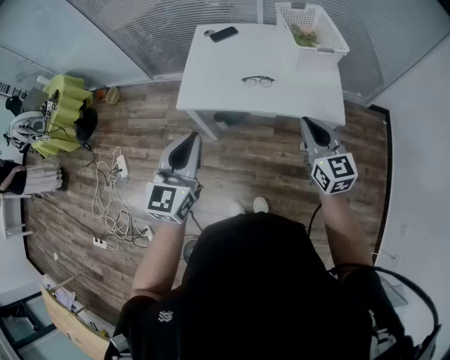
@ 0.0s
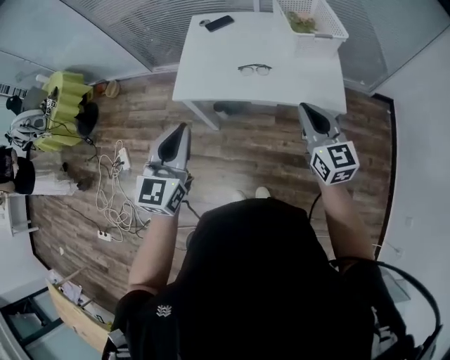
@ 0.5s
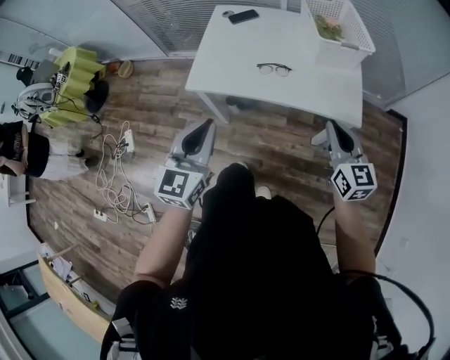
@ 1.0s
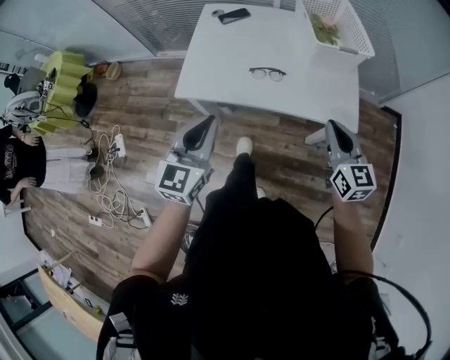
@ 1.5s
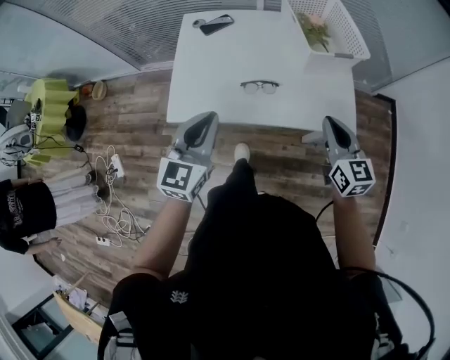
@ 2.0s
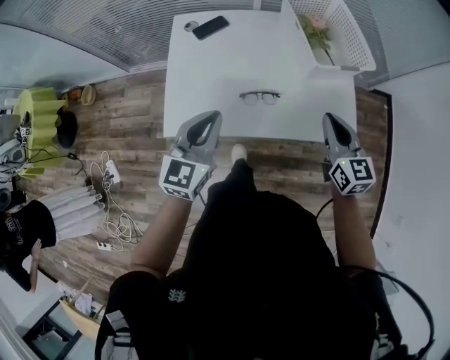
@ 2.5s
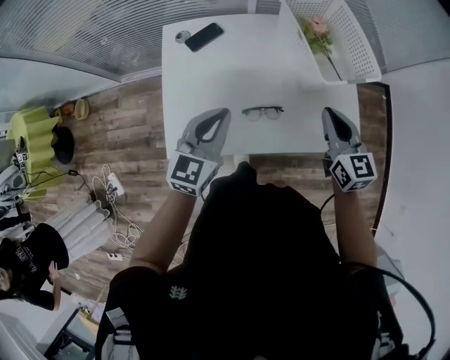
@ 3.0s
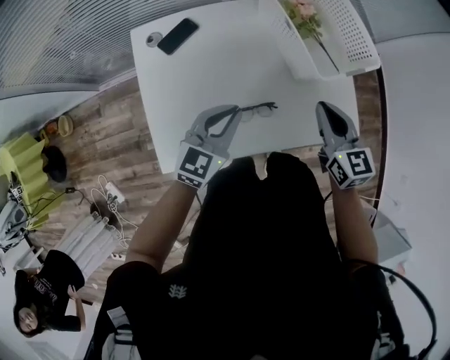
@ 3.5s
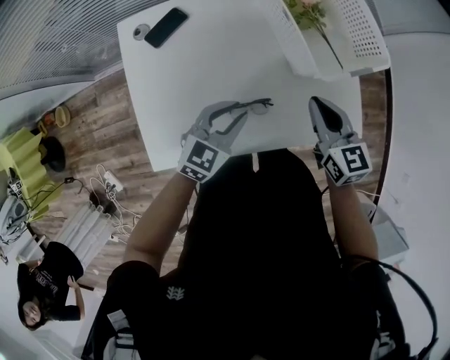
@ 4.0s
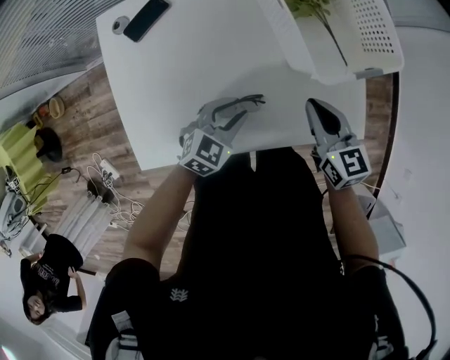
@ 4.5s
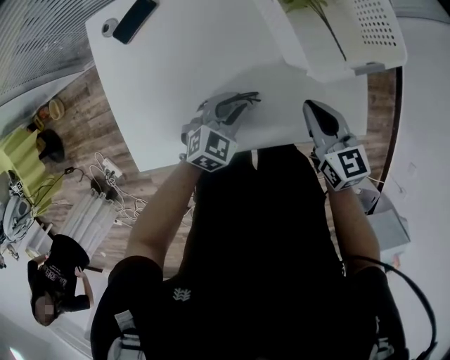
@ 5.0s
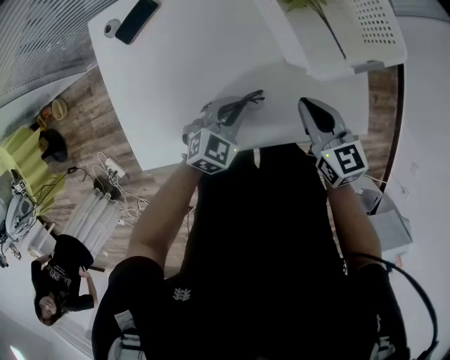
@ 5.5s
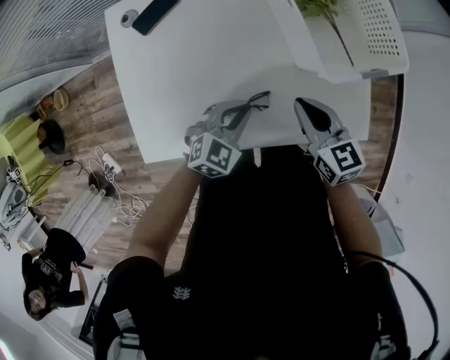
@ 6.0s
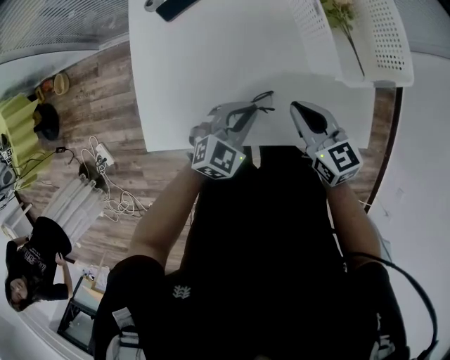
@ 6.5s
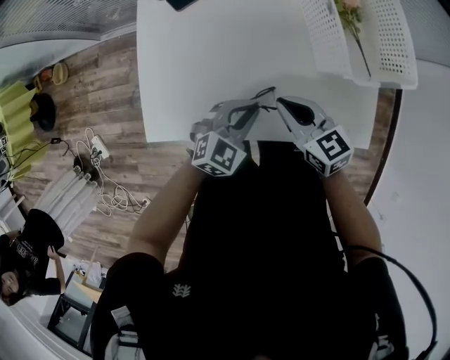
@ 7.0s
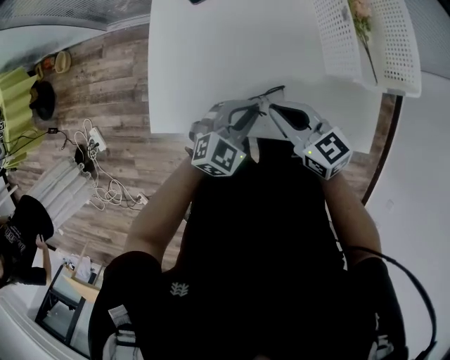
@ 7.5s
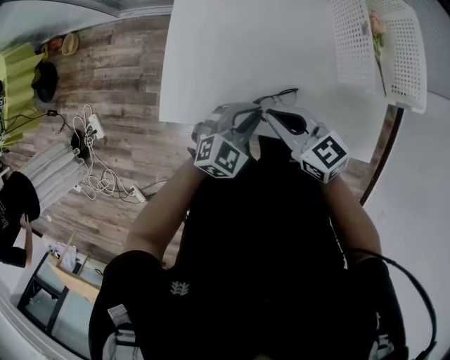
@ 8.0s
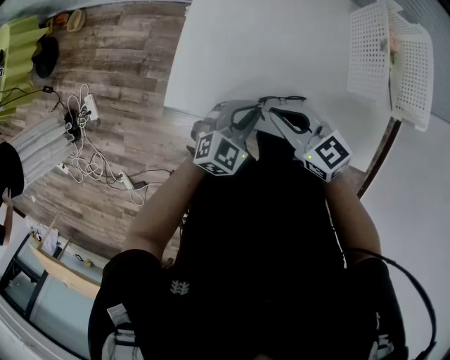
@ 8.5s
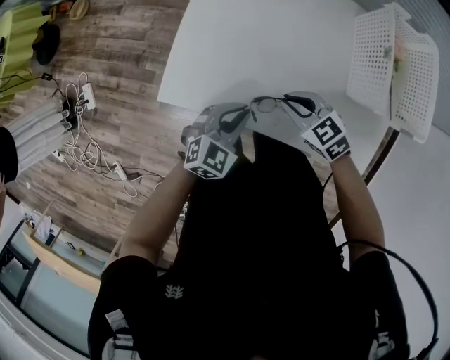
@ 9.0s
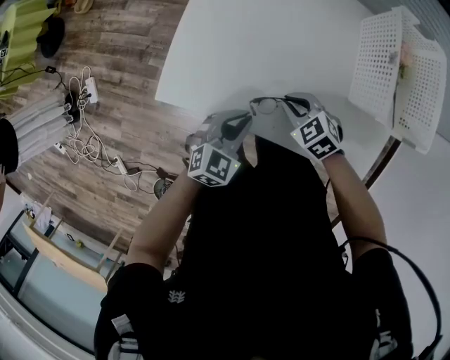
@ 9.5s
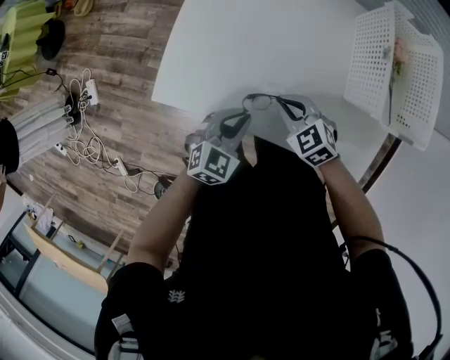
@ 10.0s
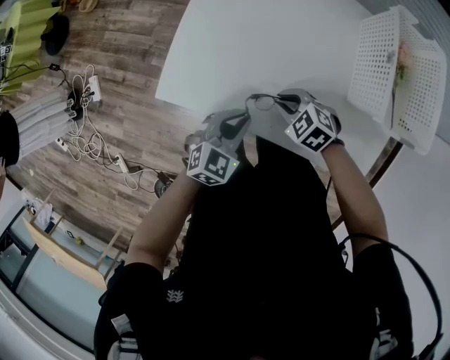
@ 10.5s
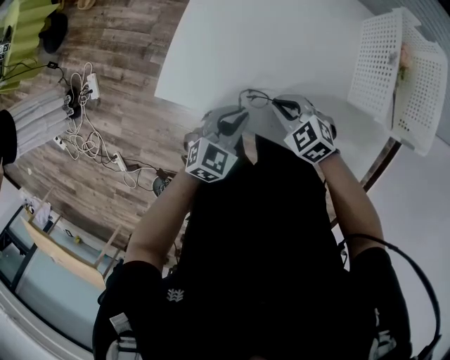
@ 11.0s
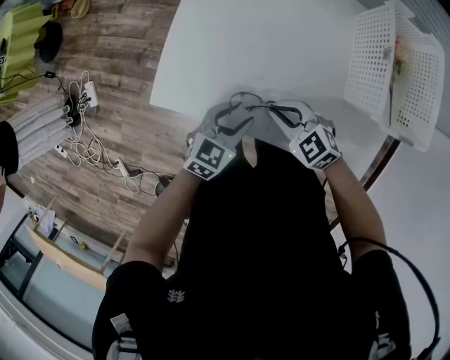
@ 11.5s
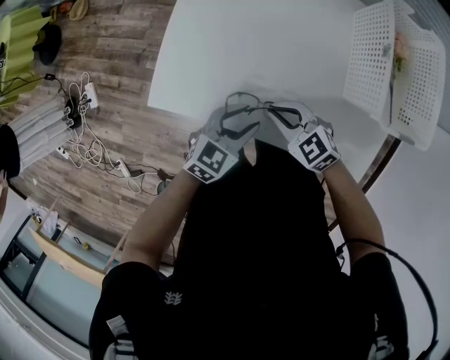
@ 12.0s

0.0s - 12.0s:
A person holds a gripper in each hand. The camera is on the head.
0.0s - 2.0s: Both grippers travel together forward, about 20 cm.
2.0s - 4.0s: Both grippers move forward and downward, roughly 25 cm. The left gripper changes its angle by some 40 degrees, and opens up.
4.0s - 6.0s: The two grippers go some 5 cm downward. The left gripper closes its fingers.
6.0s - 8.0s: The left gripper ends up about 10 cm from where it was. The right gripper changes place by roughly 20 cm, and changes its angle by approximately 30 degrees.
8.0s - 10.0s: The right gripper travels downward by roughly 10 cm, and swivels about 40 degrees. Meanwhile the left gripper rotates some 20 degrees.
10.0s - 12.0s: The left gripper opens up.

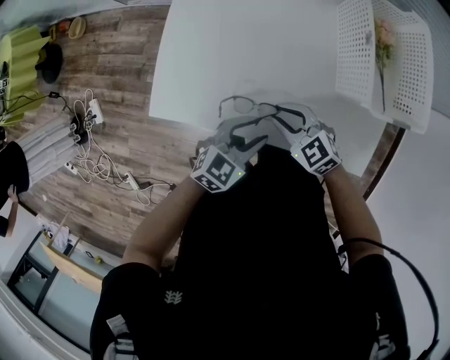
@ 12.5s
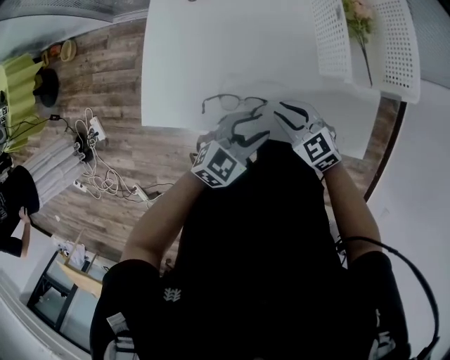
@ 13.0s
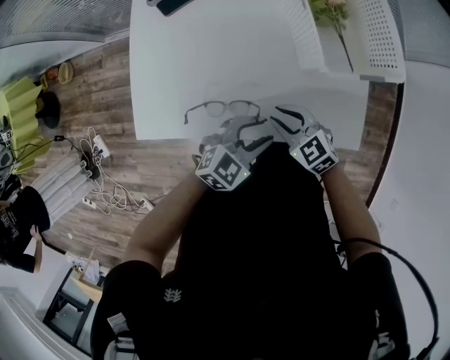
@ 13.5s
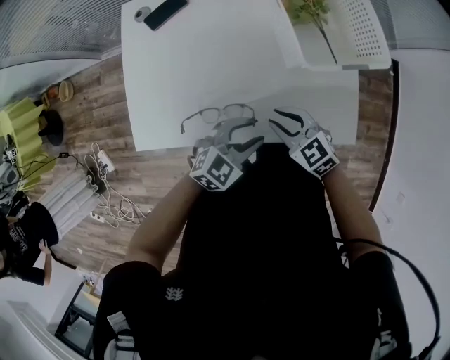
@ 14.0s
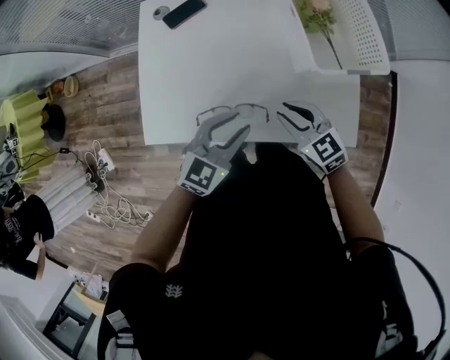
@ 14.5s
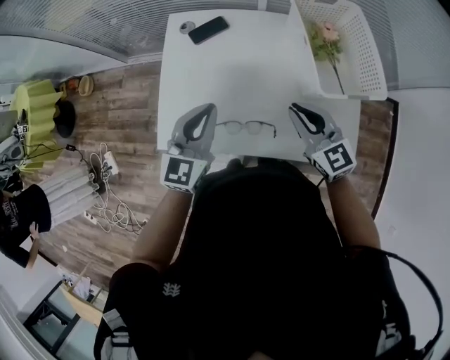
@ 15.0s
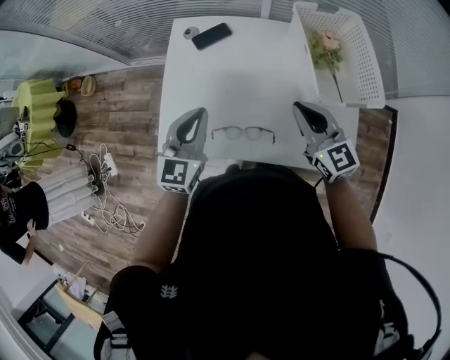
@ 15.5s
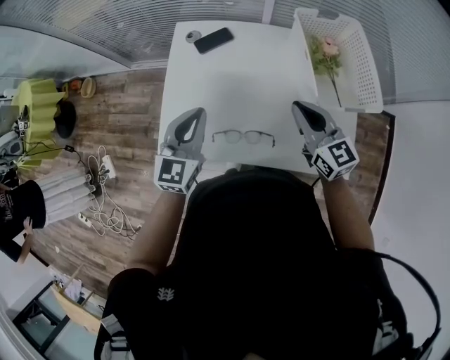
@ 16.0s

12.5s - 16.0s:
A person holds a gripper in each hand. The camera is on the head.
12.5s - 14.5s: The right gripper is displaced to the right and upward by roughly 10 cm, and rotates roughly 20 degrees. Meanwhile the left gripper travels upward by about 10 cm, and goes to the right and returns, roughly 10 cm each way.
14.5s - 16.0s: The right gripper heads upward and forward, covering about 15 cm, swivels roughly 20 degrees, and closes its fingers. Meanwhile the left gripper is displaced to the left, upward and forward by approximately 15 cm, rotates approximately 30 degrees, and closes its fingers.

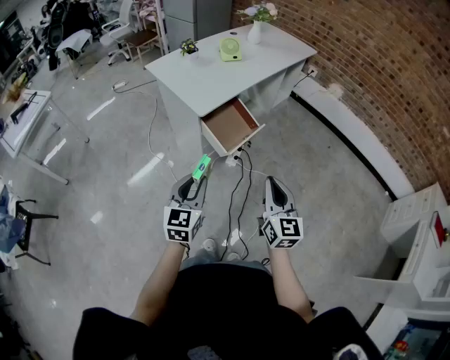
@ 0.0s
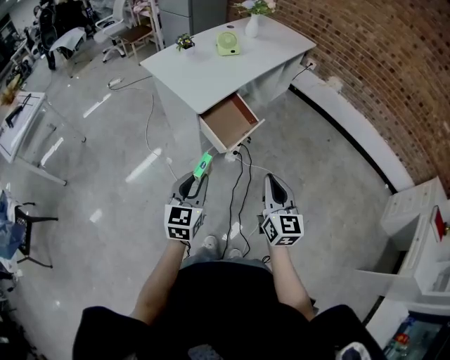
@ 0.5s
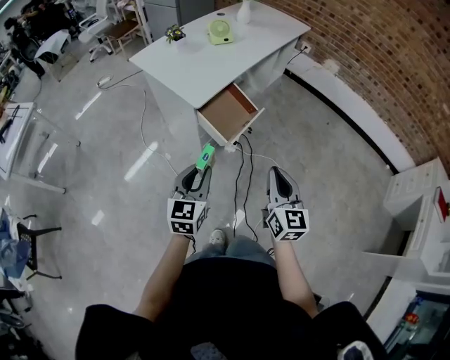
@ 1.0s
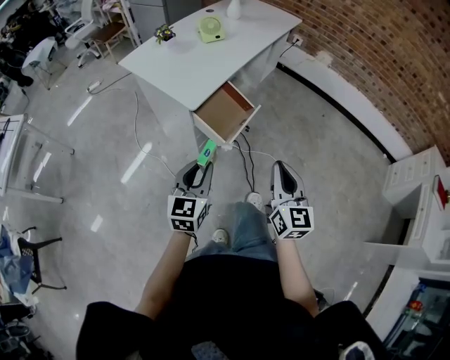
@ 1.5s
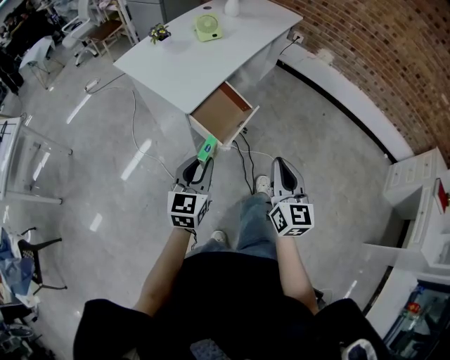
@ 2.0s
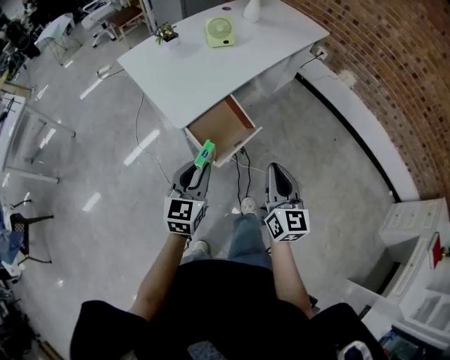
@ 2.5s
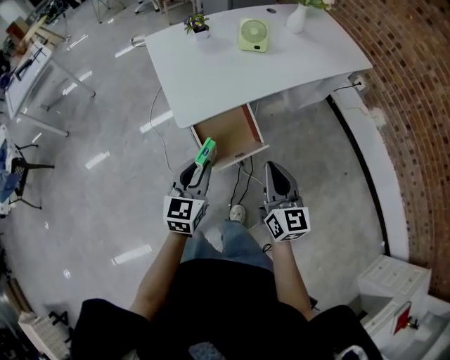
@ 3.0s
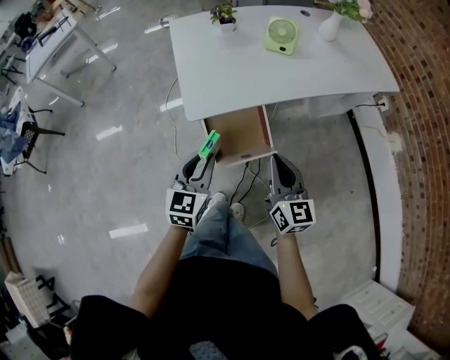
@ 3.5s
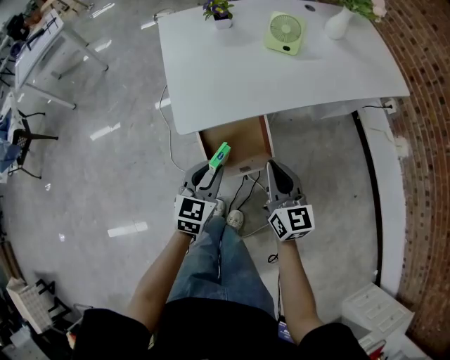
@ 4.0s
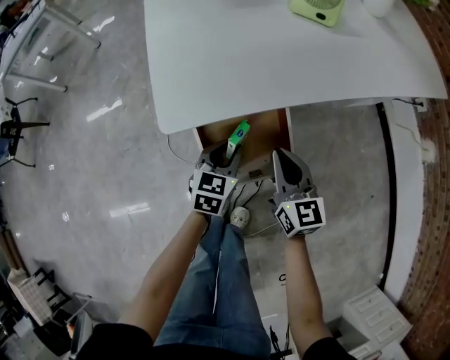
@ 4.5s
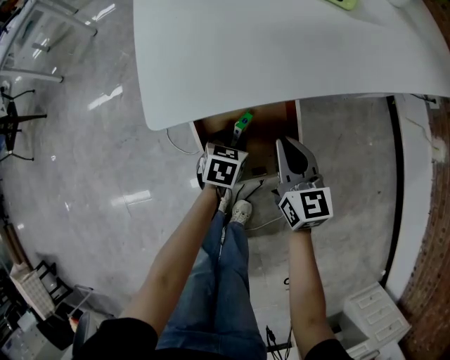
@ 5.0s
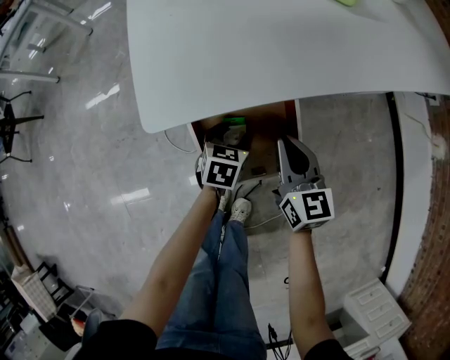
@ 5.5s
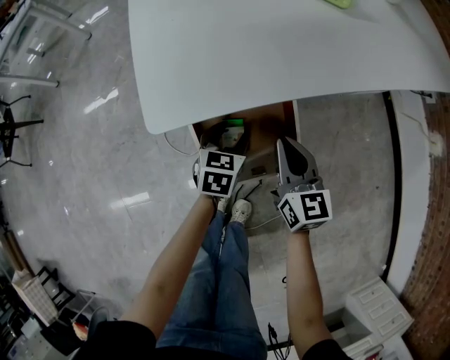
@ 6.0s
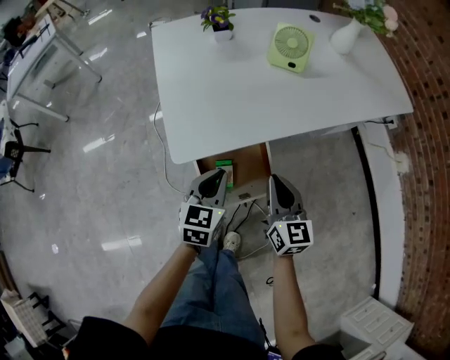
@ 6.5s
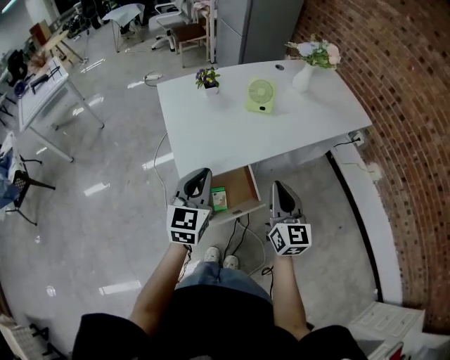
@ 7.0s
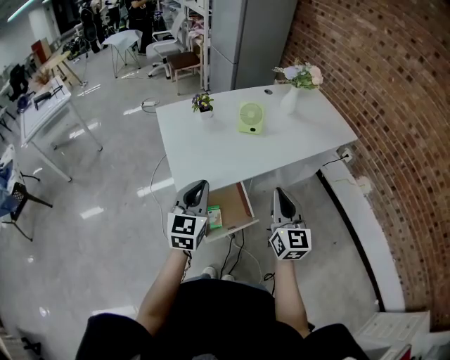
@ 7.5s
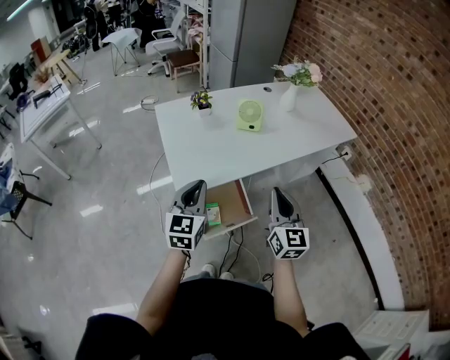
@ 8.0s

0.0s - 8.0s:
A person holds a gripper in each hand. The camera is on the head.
0.0s - 2.0s: Both grippers move forward, roughly 10 cm.
2.0s - 4.0s: The left gripper changes place by about 30 cm, and turns by about 30 degrees, while the right gripper changes place by some 40 cm, and changes its angle by about 50 degrees.
4.0s - 6.0s: The grippers both shift downward and forward by roughly 25 cm. The left gripper opens up.
6.0s - 8.0s: Both grippers move upward, roughly 40 cm. The right gripper changes its angle by about 30 degrees, while the left gripper points its fingers some 30 degrees further upward, and closes its fingers.

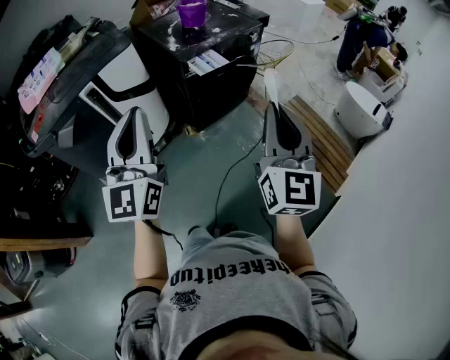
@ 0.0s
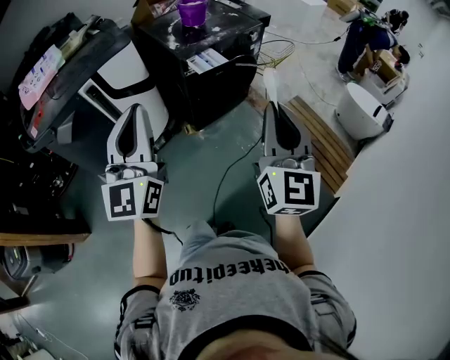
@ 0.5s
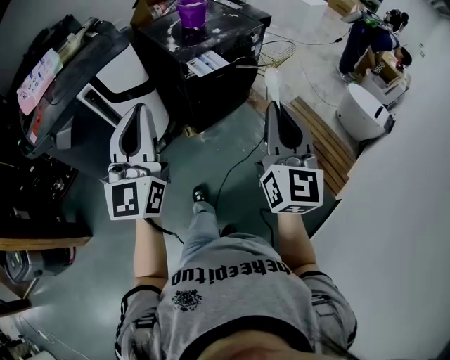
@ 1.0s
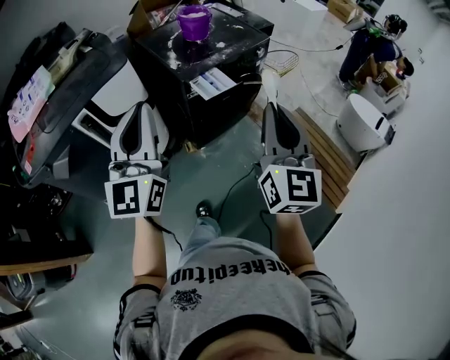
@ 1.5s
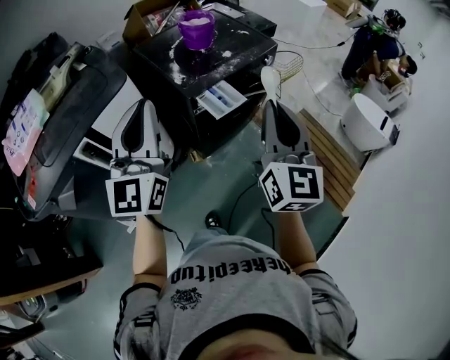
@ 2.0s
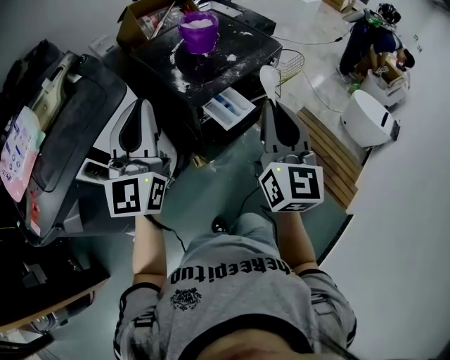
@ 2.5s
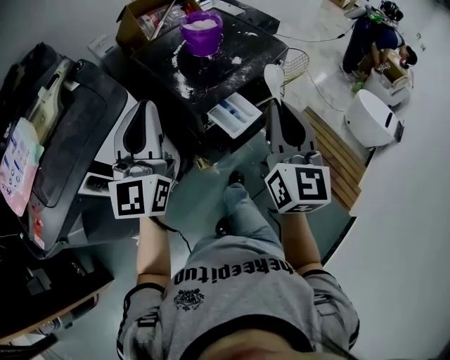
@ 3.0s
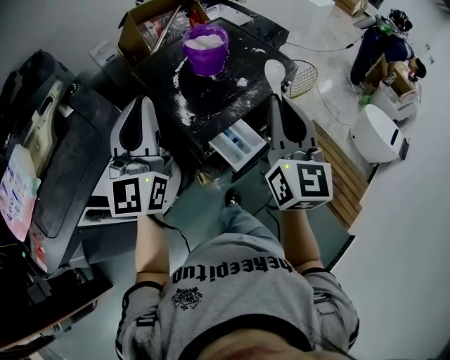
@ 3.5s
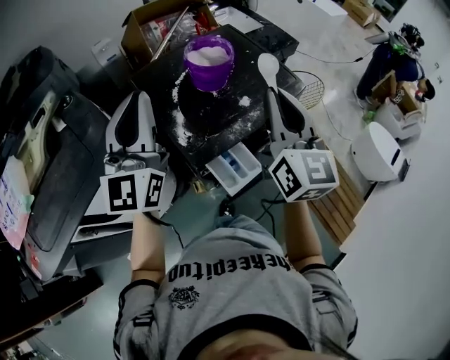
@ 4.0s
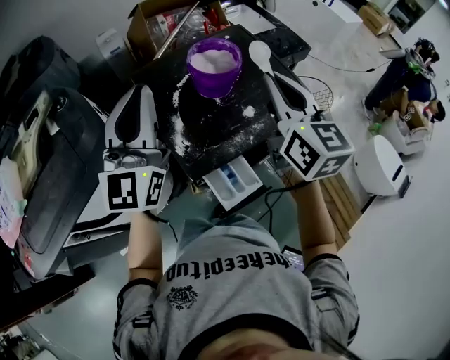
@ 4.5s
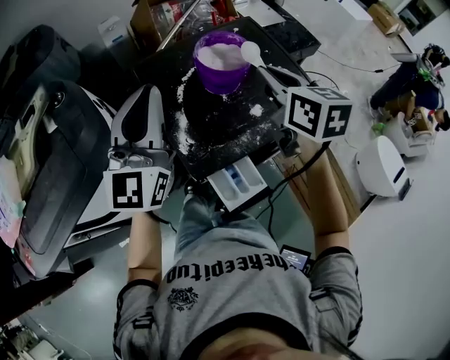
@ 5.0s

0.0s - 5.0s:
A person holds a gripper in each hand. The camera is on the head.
0.0s - 2.5s: Both grippers travel together forward, roughly 35 cm.
2.5s - 5.0s: The grippers both shift forward by some 40 cm. The right gripper changes its angle by roughly 40 degrees.
